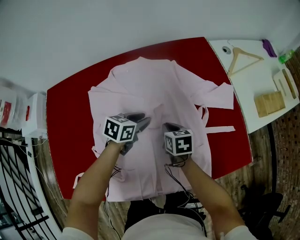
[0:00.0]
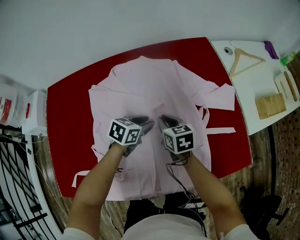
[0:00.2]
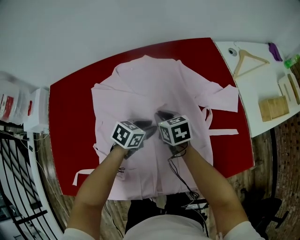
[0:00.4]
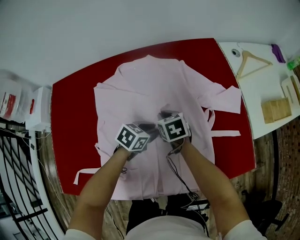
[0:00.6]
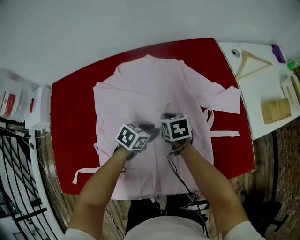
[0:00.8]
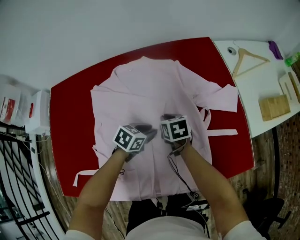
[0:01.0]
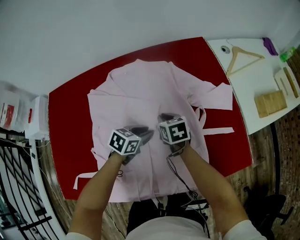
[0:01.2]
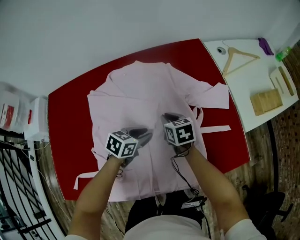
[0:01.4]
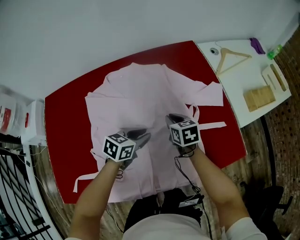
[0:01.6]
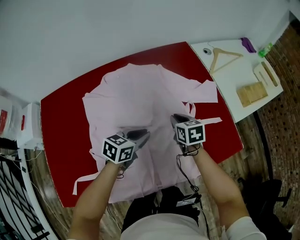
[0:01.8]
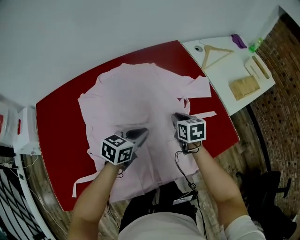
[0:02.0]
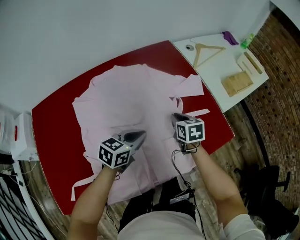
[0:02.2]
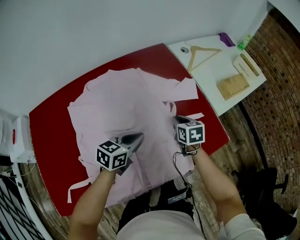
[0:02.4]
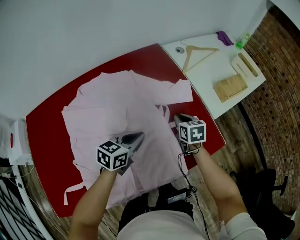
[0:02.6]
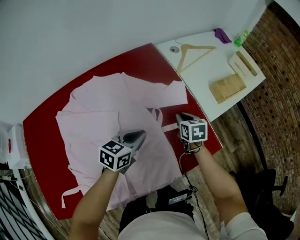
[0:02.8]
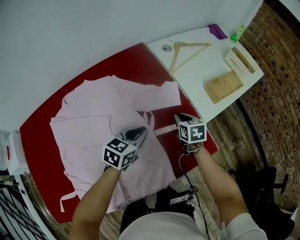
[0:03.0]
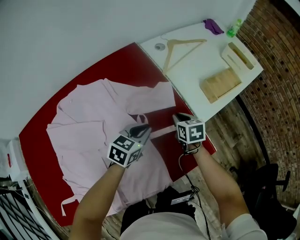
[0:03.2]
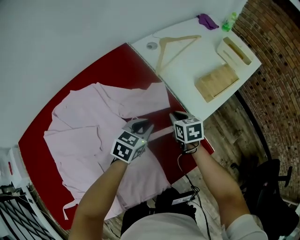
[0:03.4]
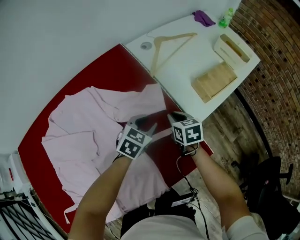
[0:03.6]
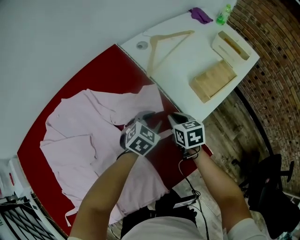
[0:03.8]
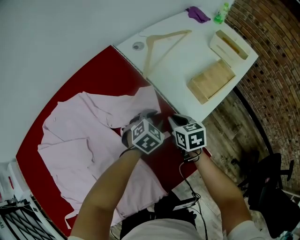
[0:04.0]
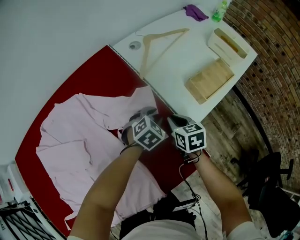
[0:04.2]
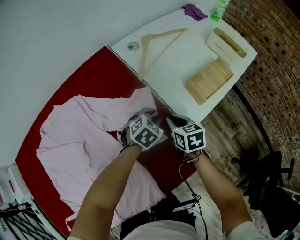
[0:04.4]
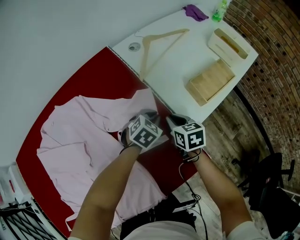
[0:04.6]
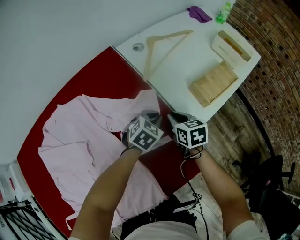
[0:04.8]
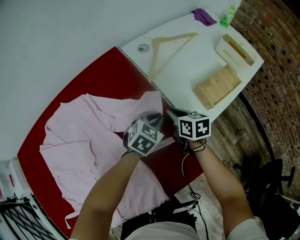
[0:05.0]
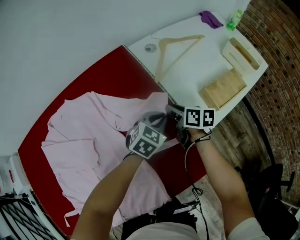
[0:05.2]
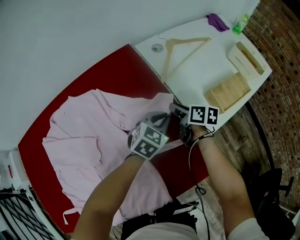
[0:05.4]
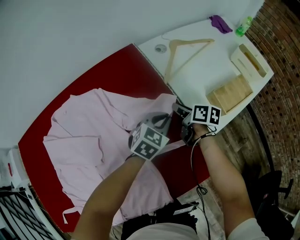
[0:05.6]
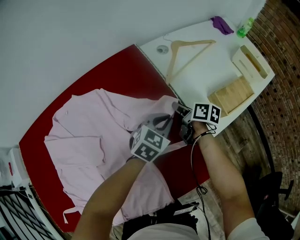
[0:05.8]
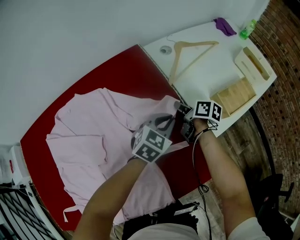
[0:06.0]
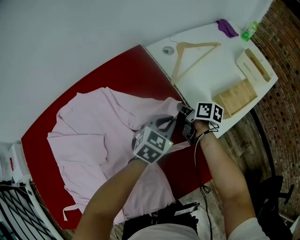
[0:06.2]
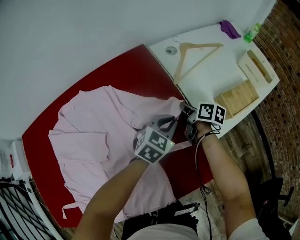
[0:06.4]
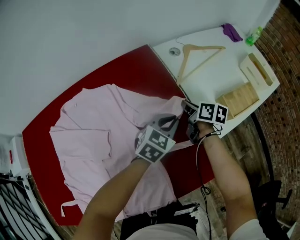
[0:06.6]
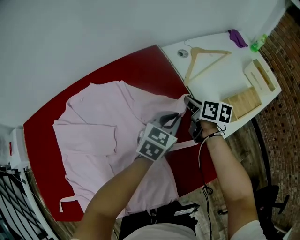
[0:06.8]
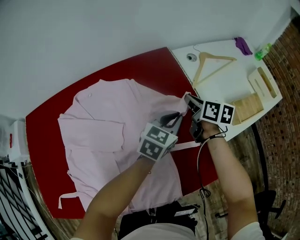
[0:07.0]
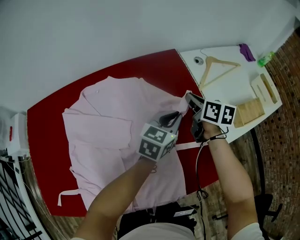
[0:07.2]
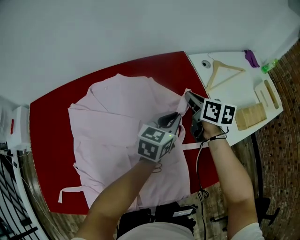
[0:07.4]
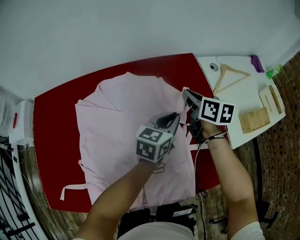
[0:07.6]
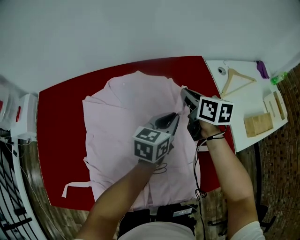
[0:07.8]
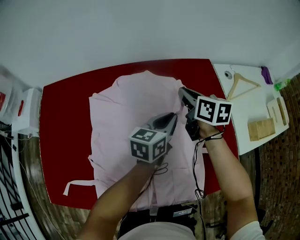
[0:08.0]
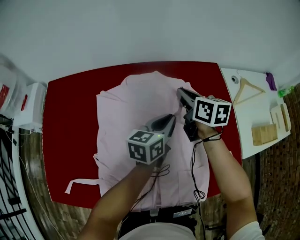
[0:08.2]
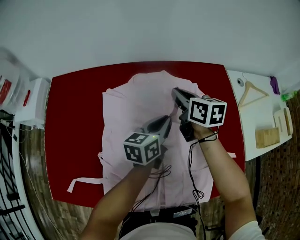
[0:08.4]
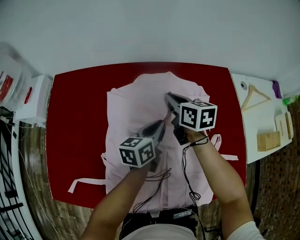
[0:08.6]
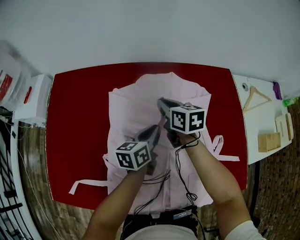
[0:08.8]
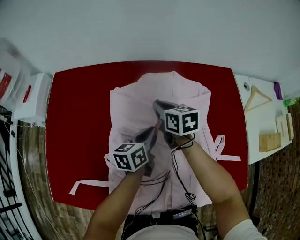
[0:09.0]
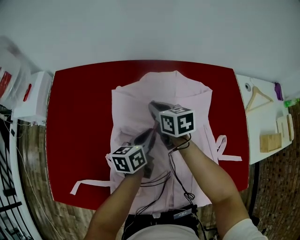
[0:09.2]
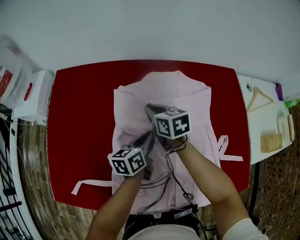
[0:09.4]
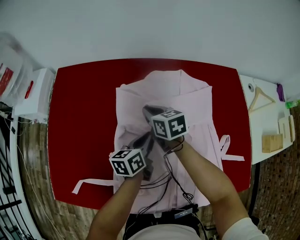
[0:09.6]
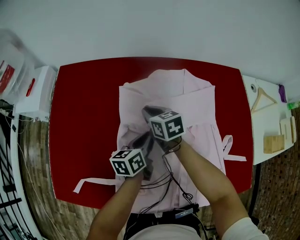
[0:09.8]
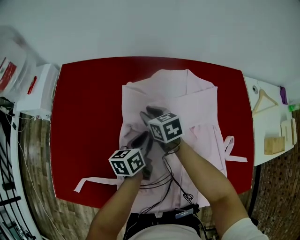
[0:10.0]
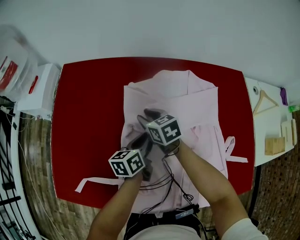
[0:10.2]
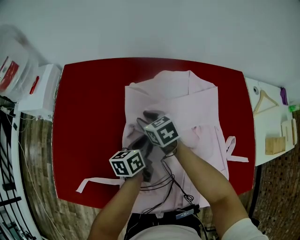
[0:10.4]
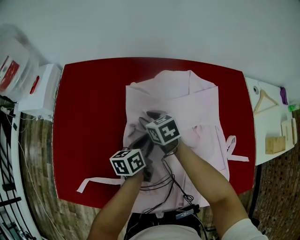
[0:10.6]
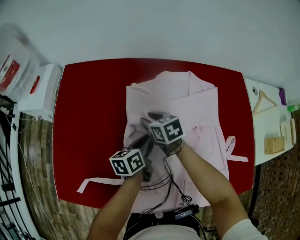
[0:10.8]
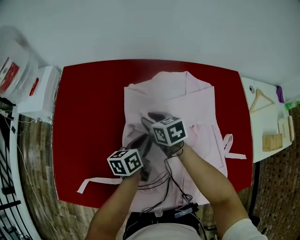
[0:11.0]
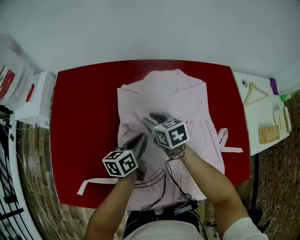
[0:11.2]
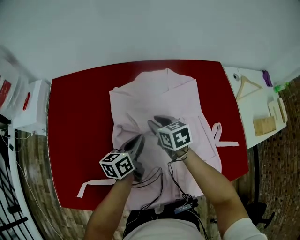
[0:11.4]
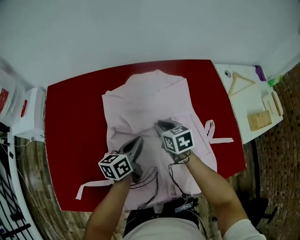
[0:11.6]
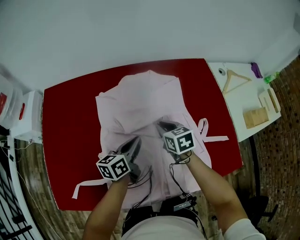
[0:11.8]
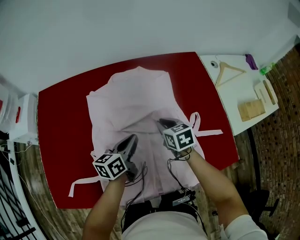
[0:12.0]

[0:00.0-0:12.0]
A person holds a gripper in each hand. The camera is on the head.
0:00.0 to 0:01.6: The right gripper moves approximately 5 cm, while the left gripper heads backward, covering about 5 cm.
0:01.6 to 0:03.0: The left gripper travels to the right and forward by approximately 20 cm, and closes its fingers. The right gripper travels to the right by approximately 25 cm, and turns by approximately 20 degrees.
0:03.0 to 0:04.4: The right gripper shifts approximately 5 cm to the right. The left gripper is displaced forward, to the right and downward by about 25 cm, turns by some 40 degrees, and opens.
0:04.4 to 0:06.0: The right gripper travels forward and to the left by roughly 10 cm, and changes its angle by about 40 degrees. Meanwhile the left gripper goes about 10 cm upward and to the left, rotates roughly 20 degrees, and closes up.
0:06.0 to 0:07.6: The right gripper is displaced to the left and upward by approximately 25 cm, and rotates approximately 40 degrees. The left gripper is displaced to the left by about 20 cm, and swivels some 40 degrees.
0:07.6 to 0:09.0: Both grippers move to the left, some 30 cm. The left gripper changes its angle by approximately 30 degrees. The right gripper rotates approximately 20 degrees.
0:09.0 to 0:10.4: The left gripper shifts about 10 cm to the left; the right gripper heads to the left and downward, covering some 15 cm, changes its angle by some 20 degrees, and opens its fingers.
0:10.4 to 0:12.0: The left gripper shifts approximately 10 cm to the right and upward, while the right gripper travels to the right by about 25 cm, and rotates approximately 30 degrees.

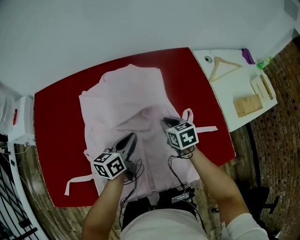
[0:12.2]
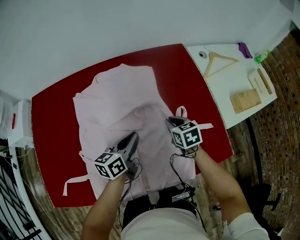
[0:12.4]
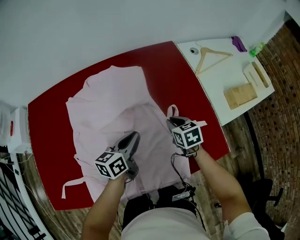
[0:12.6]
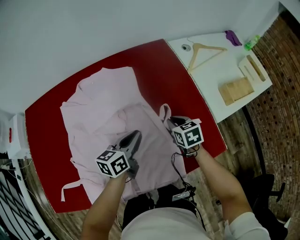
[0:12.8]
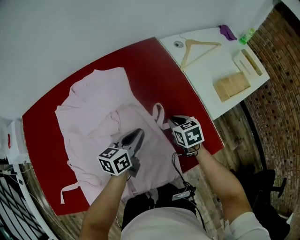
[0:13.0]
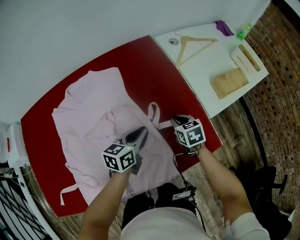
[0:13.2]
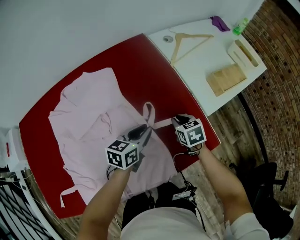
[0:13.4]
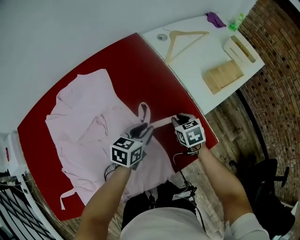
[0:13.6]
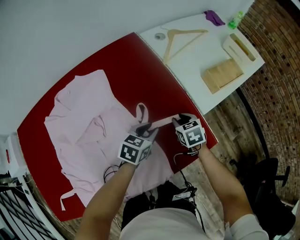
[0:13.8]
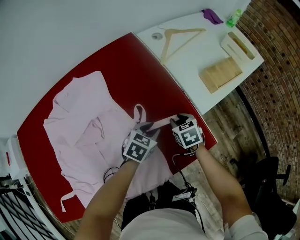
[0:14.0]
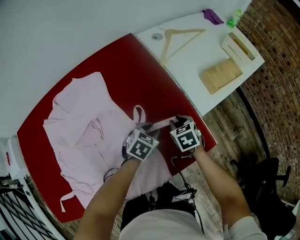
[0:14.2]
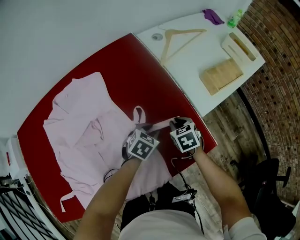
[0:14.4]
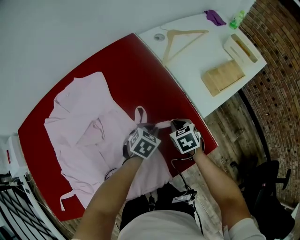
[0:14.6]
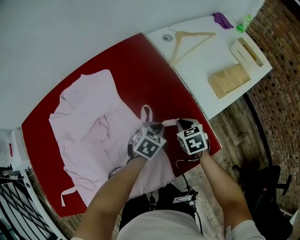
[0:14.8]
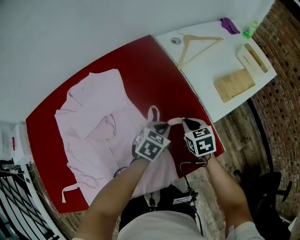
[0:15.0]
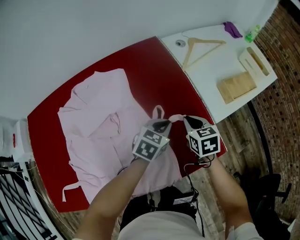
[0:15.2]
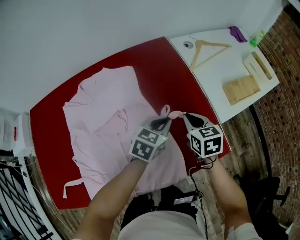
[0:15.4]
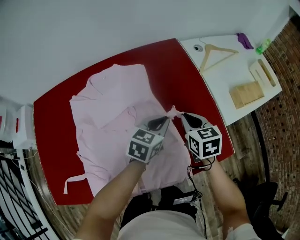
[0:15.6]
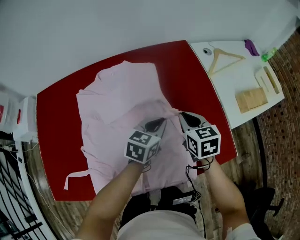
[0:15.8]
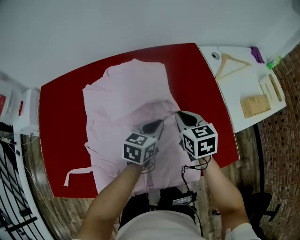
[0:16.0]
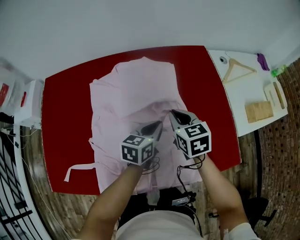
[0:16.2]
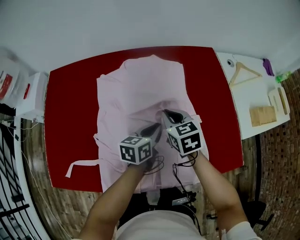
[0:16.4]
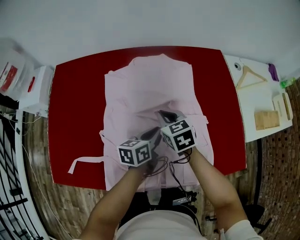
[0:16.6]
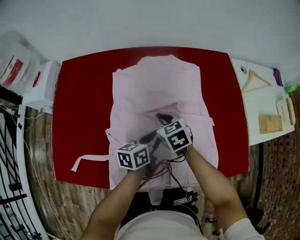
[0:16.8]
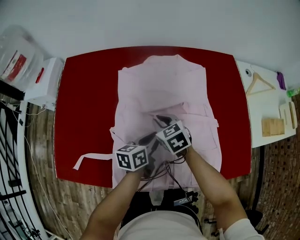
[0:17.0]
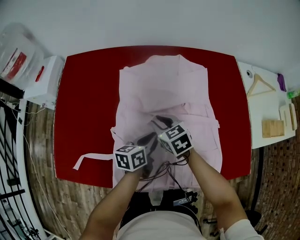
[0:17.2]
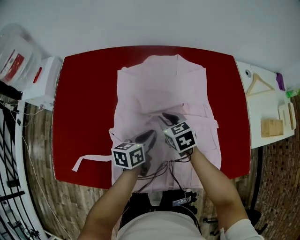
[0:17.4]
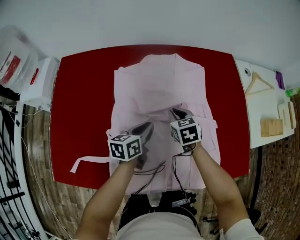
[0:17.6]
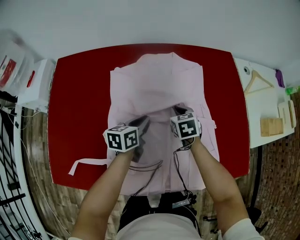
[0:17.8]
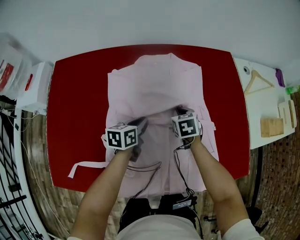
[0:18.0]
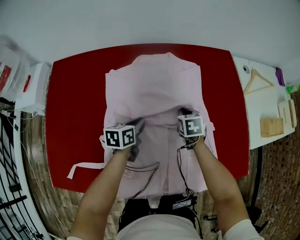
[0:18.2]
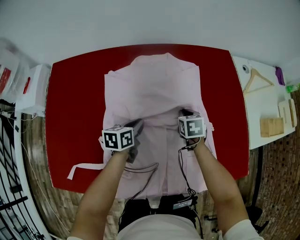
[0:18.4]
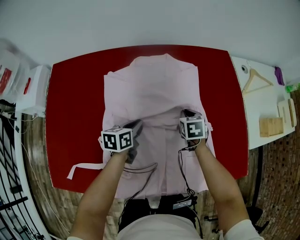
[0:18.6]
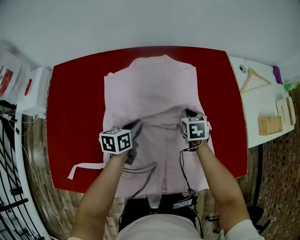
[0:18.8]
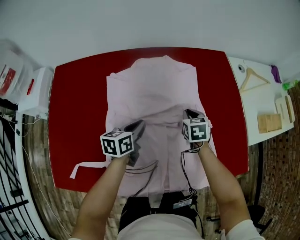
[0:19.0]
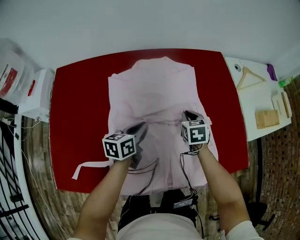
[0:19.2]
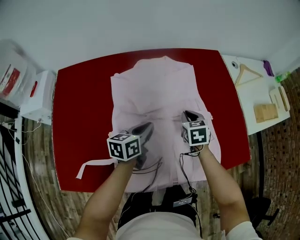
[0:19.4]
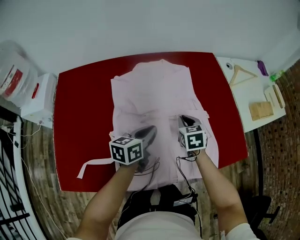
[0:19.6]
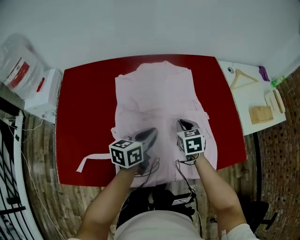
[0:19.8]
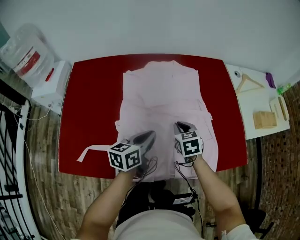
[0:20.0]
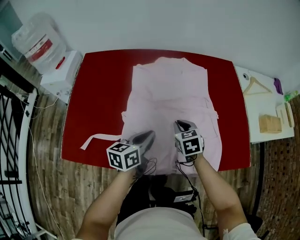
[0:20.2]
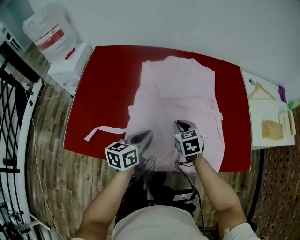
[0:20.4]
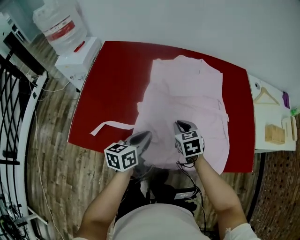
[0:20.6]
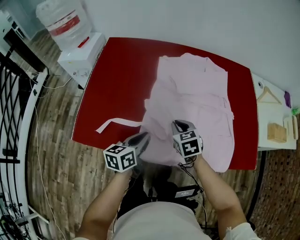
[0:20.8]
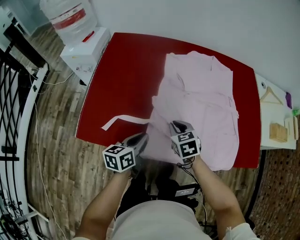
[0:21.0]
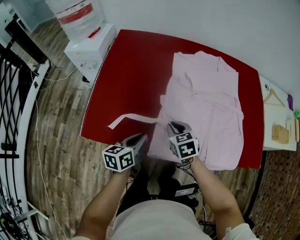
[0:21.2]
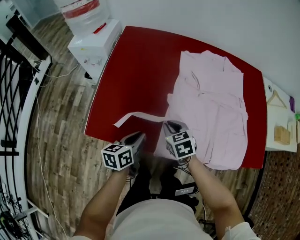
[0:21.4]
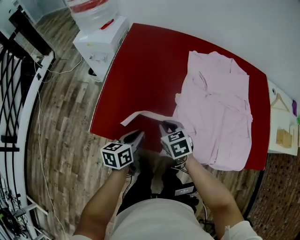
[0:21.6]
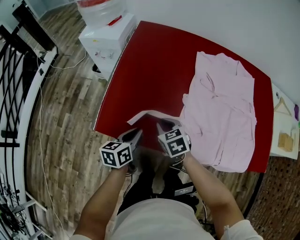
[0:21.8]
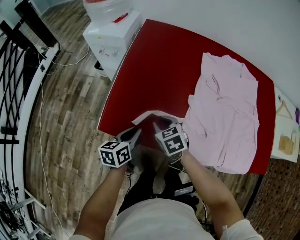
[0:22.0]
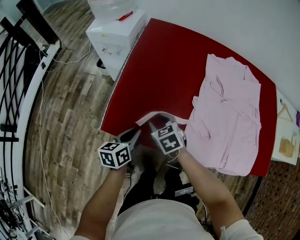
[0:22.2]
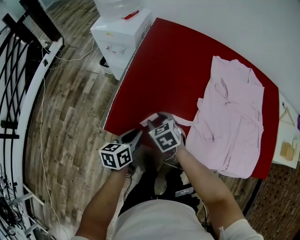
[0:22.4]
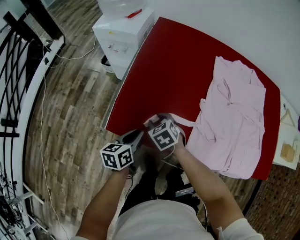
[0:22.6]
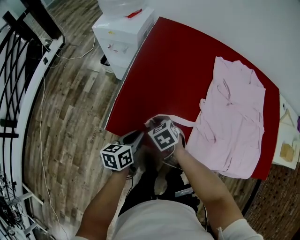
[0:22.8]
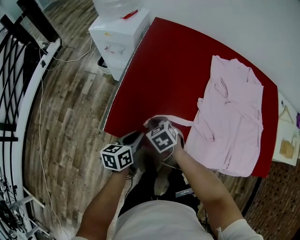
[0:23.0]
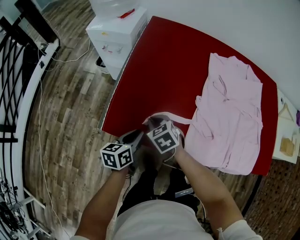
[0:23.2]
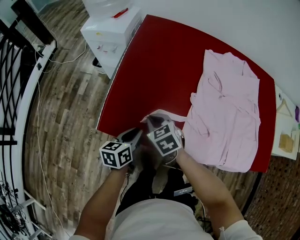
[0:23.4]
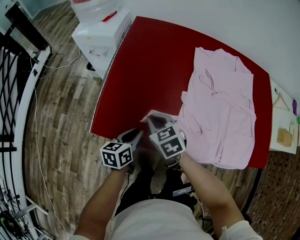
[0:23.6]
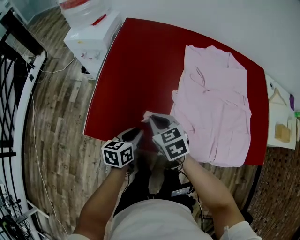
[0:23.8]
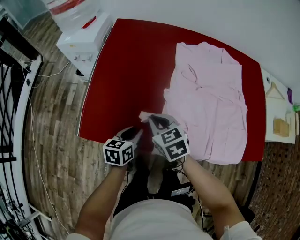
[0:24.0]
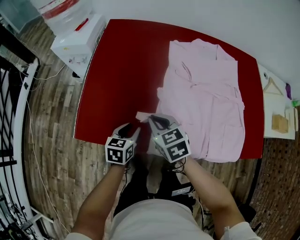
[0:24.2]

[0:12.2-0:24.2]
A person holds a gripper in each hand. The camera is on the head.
0:12.2 to 0:13.8: The left gripper changes place by roughly 30 cm, rotates some 50 degrees, and opens its fingers. The right gripper shifts by roughly 30 cm.
0:13.8 to 0:15.2: The right gripper moves upward, roughly 10 cm.
0:15.2 to 0:16.6: The left gripper ends up roughly 30 cm from where it was, and rolls counterclockwise, seen from behind, by some 50 degrees, while the right gripper changes place by approximately 35 cm, and turns by some 30 degrees.
0:16.6 to 0:18.2: The left gripper travels to the left, downward and forward by approximately 15 cm. Meanwhile the right gripper travels downward, to the right and forward by roughly 15 cm, and turns by approximately 20 degrees.
0:18.2 to 0:19.8: The left gripper is displaced upward, backward and to the right by approximately 15 cm, and turns by about 20 degrees, while the right gripper shifts about 15 cm backward and upward.
0:19.8 to 0:21.2: The right gripper ends up approximately 30 cm from where it was, and turns by roughly 30 degrees. The left gripper changes place by about 30 cm, and swivels approximately 20 degrees.
0:21.2 to 0:22.6: The two grippers go roughly 20 cm to the left. The right gripper changes its angle by approximately 20 degrees, and opens.
0:22.6 to 0:24.2: The left gripper heads to the right, covering about 15 cm, and rotates some 30 degrees, while the right gripper goes roughly 20 cm to the right and upward, swivels some 20 degrees, and closes up.
